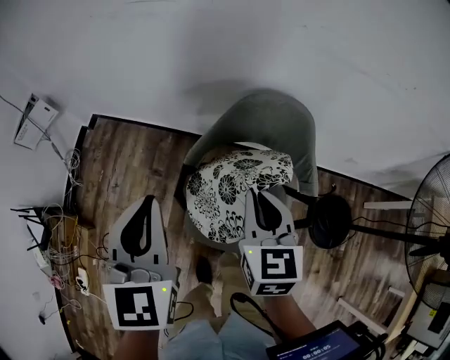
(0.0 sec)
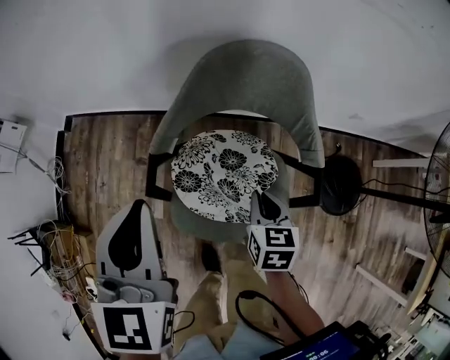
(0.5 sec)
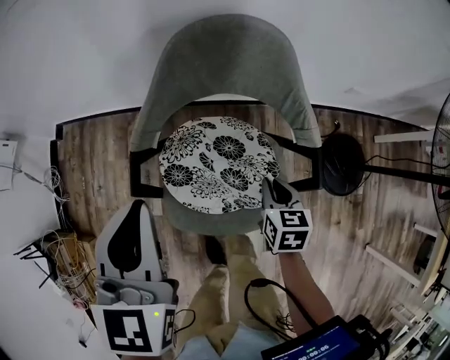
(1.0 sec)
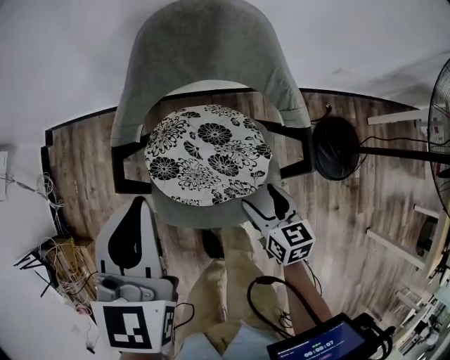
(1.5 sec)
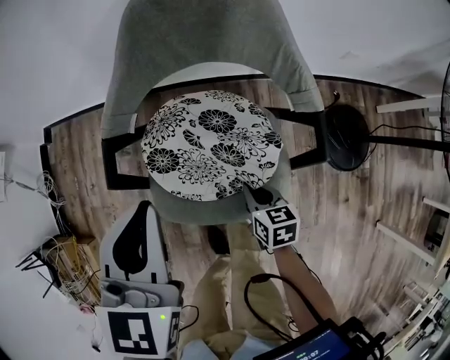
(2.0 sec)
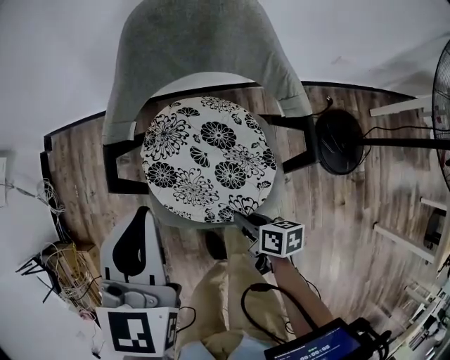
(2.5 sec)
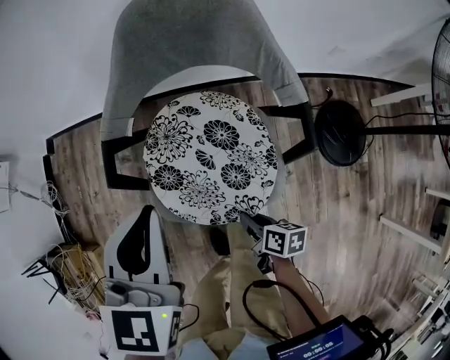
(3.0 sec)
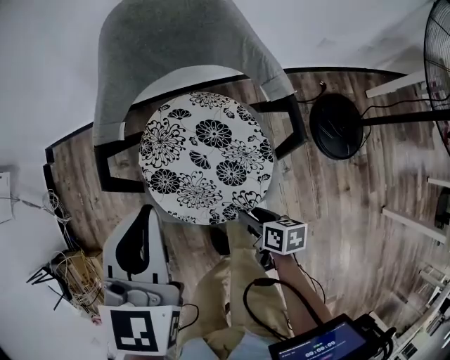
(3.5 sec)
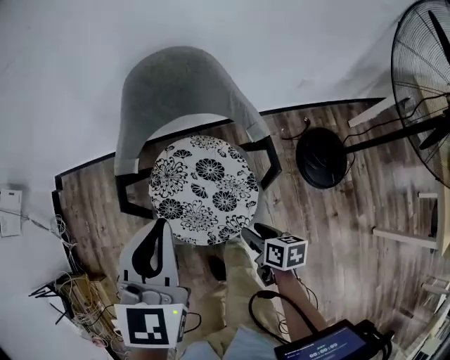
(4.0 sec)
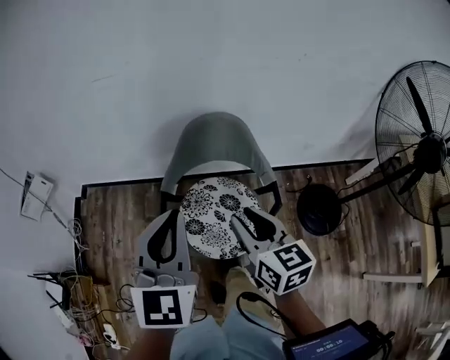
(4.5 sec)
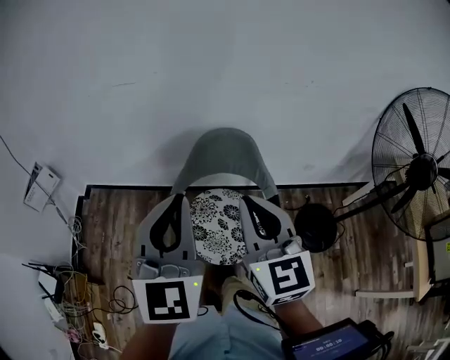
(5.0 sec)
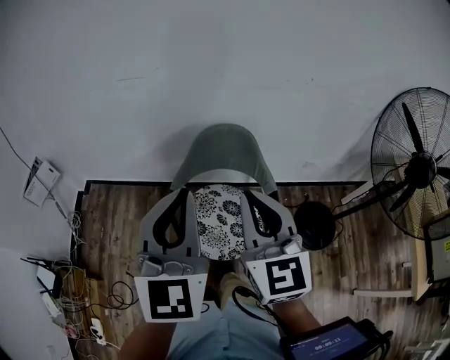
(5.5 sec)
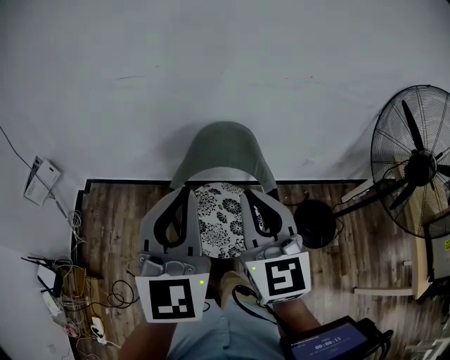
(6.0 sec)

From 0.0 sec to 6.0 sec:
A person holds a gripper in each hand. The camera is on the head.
From 0.0 sec to 2.0 sec: The left gripper is displaced downward and to the right by about 25 cm, and swivels roughly 20 degrees, while the right gripper heads downward, covering approximately 40 cm, swivels roughly 30 degrees, and opens, then closes again.
From 2.0 sec to 4.0 sec: The right gripper goes roughly 10 cm upward and backward, changes its angle by roughly 20 degrees, and opens; the left gripper heads upward, covering roughly 10 cm.
From 4.0 sec to 6.0 sec: The left gripper travels upward by some 25 cm, and changes its angle by some 30 degrees. Meanwhile the right gripper travels upward by about 50 cm, tips its fingers upward by roughly 40 degrees, and closes.

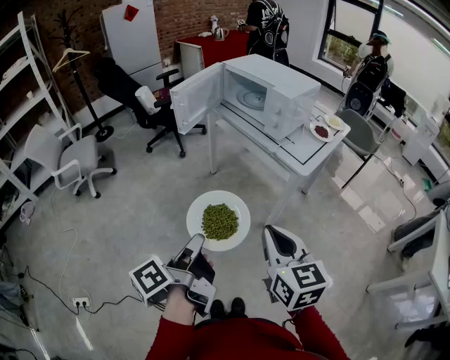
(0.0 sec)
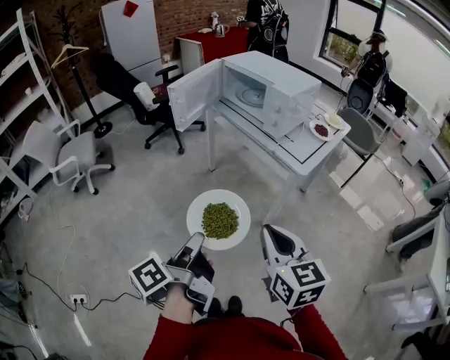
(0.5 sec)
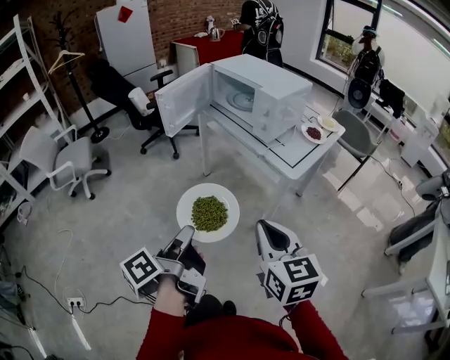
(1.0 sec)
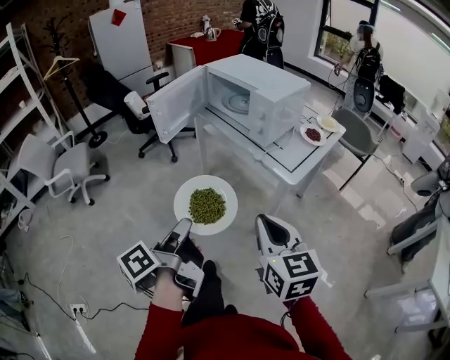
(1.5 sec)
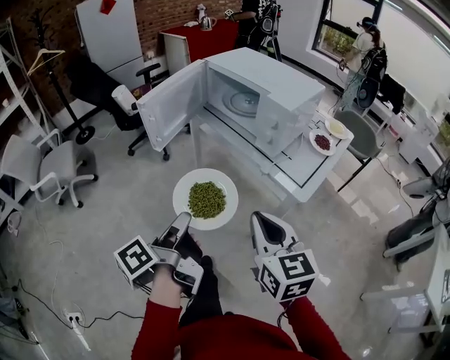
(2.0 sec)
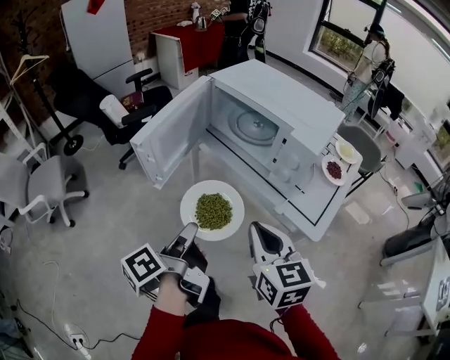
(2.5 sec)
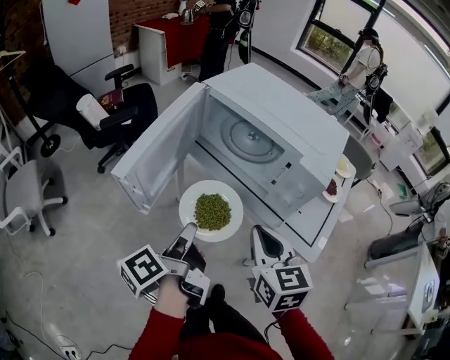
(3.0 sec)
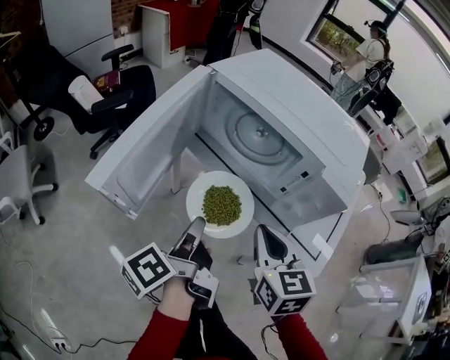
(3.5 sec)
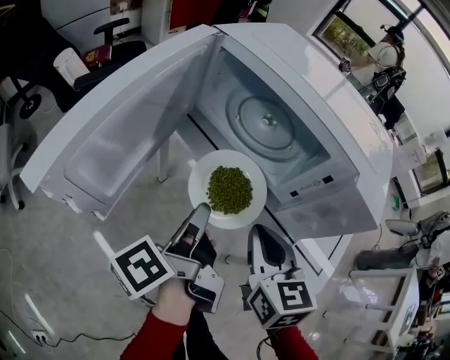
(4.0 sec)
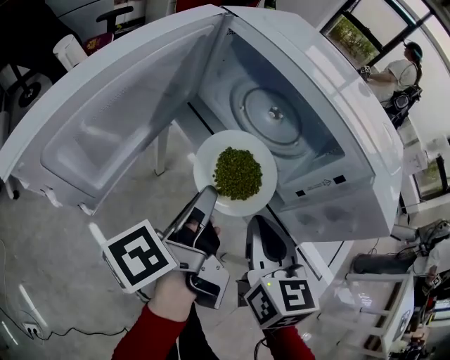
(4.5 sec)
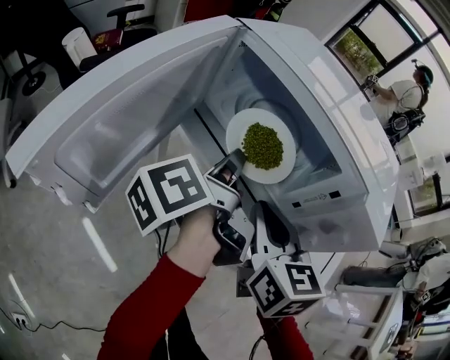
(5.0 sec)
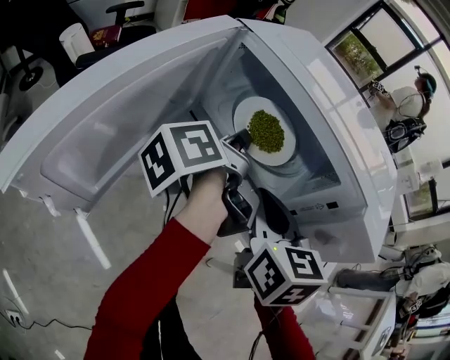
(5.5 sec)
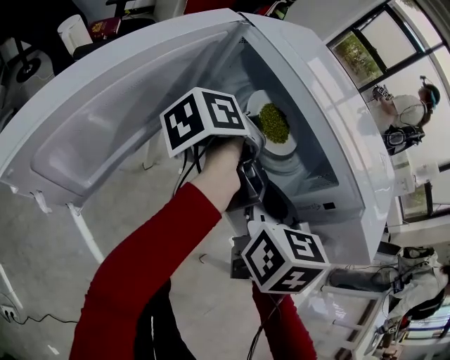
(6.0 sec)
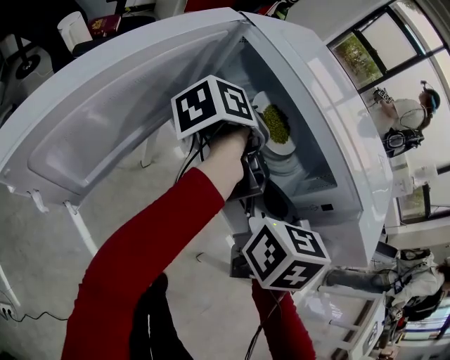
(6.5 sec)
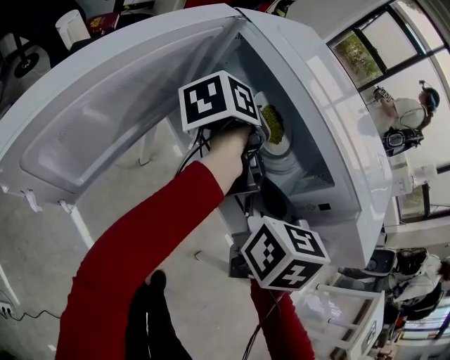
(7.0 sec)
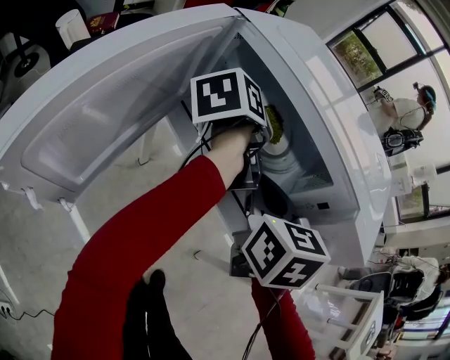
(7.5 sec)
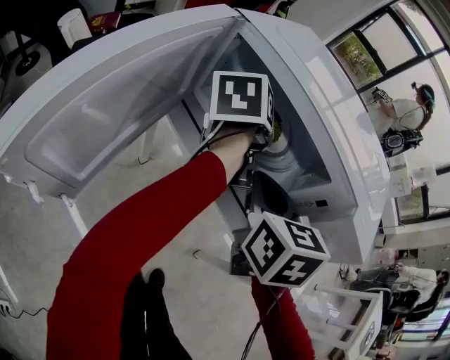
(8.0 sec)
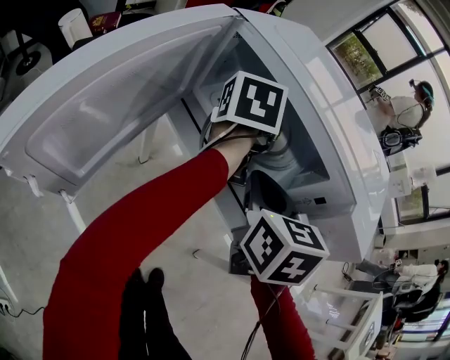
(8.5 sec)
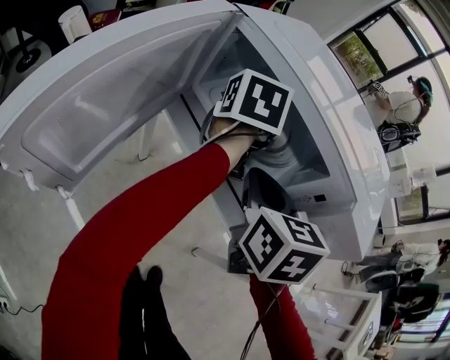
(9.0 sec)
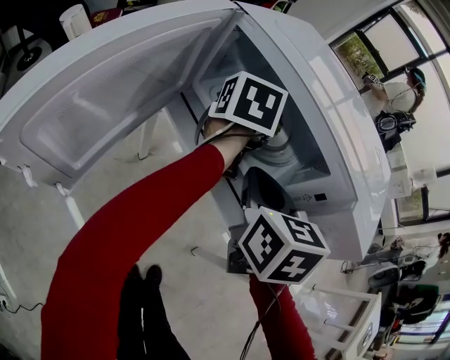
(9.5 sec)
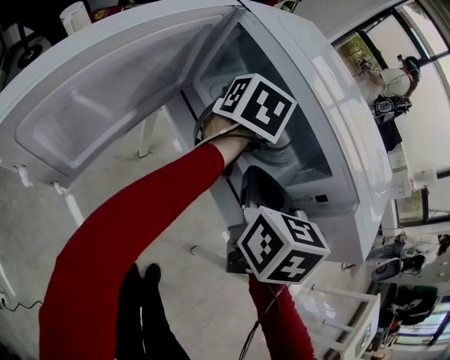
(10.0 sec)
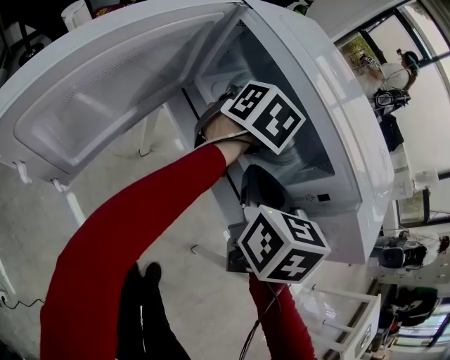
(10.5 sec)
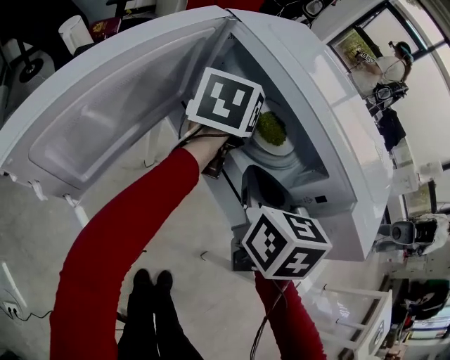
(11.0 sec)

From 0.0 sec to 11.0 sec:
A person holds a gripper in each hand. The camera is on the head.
From 0.0 sec to 2.0 sec: The grippers both shift forward by about 20 cm.
From 2.0 sec to 3.5 sec: The two grippers go approximately 25 cm forward.
From 3.5 sec to 5.5 sec: The left gripper shifts about 20 cm forward, while the right gripper shifts approximately 10 cm forward.
From 5.5 sec to 7.5 sec: The left gripper shifts some 5 cm forward, and changes its angle by about 30 degrees.
From 7.5 sec to 9.0 sec: The left gripper swivels approximately 40 degrees.

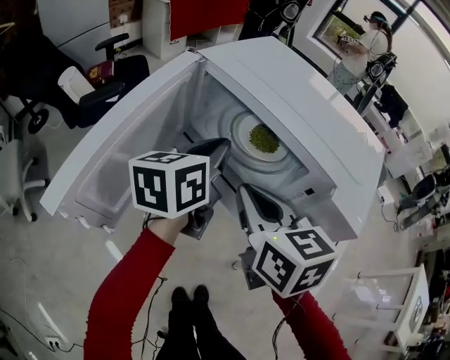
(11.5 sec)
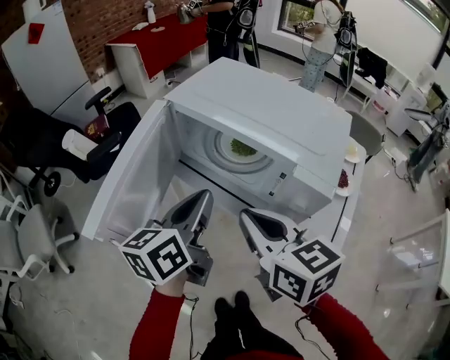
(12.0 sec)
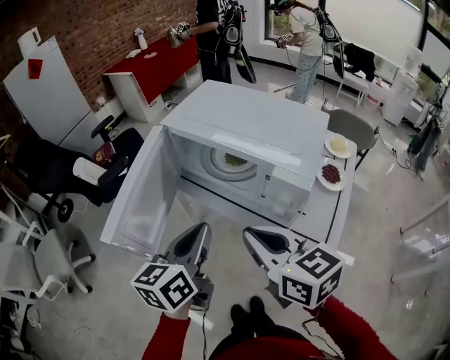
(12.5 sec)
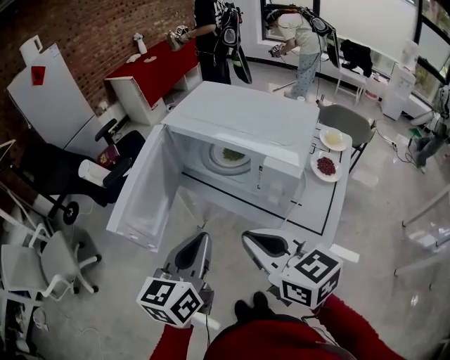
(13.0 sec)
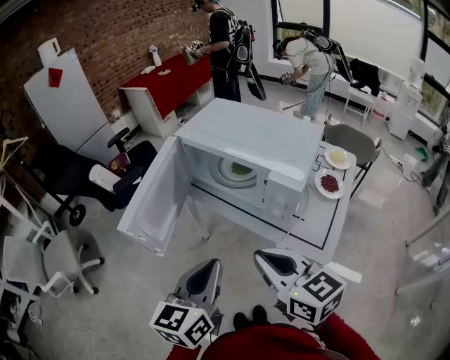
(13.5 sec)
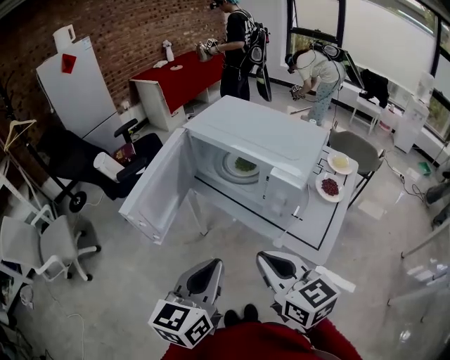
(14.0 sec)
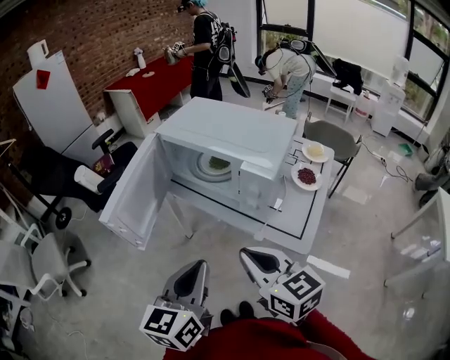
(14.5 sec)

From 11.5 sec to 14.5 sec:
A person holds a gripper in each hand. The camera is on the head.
From 11.5 sec to 13.0 sec: The left gripper goes about 20 cm backward, while the right gripper moves backward and upward, some 15 cm.
From 13.0 sec to 14.5 sec: The left gripper moves backward, some 10 cm. The right gripper travels backward by about 5 cm.

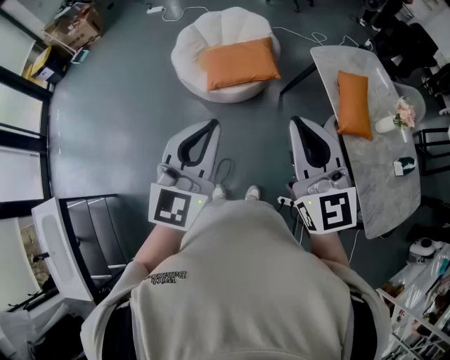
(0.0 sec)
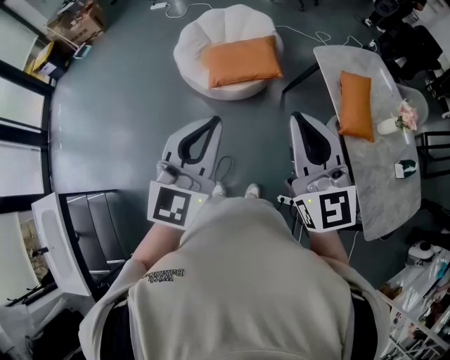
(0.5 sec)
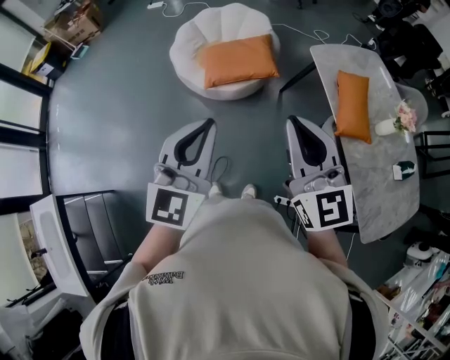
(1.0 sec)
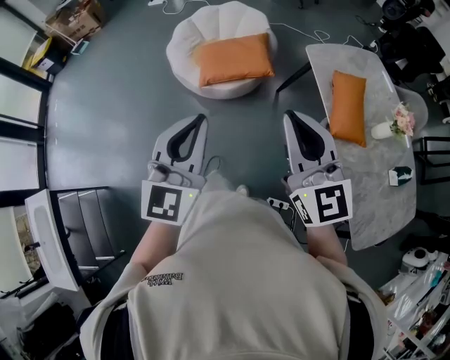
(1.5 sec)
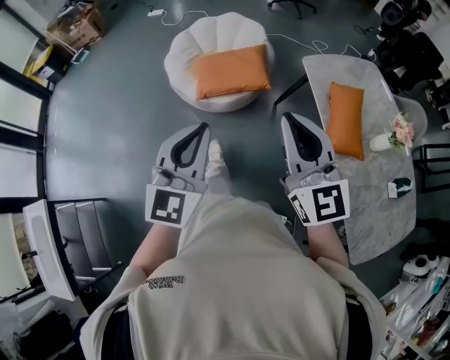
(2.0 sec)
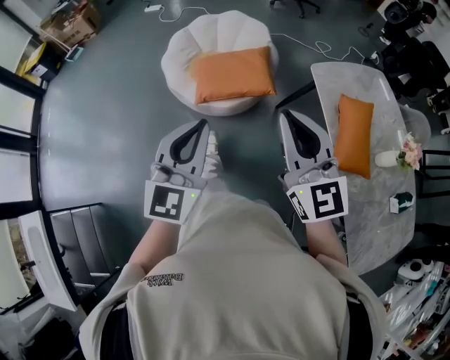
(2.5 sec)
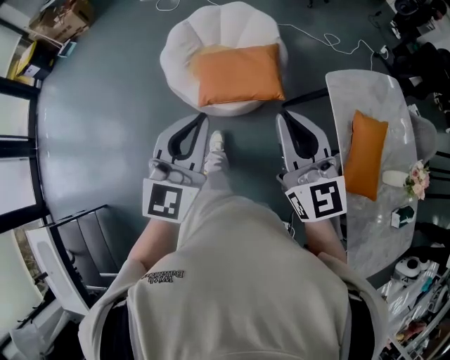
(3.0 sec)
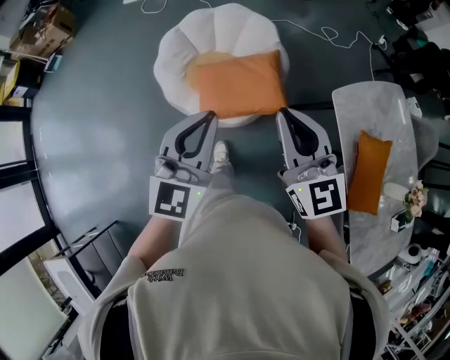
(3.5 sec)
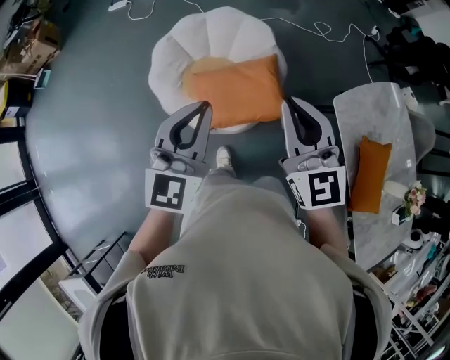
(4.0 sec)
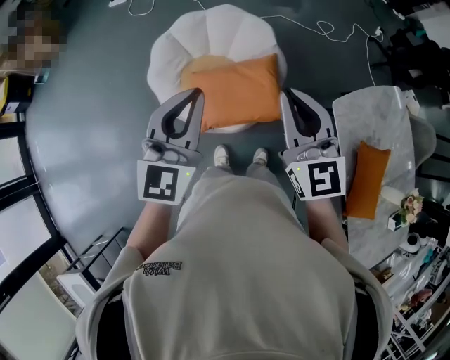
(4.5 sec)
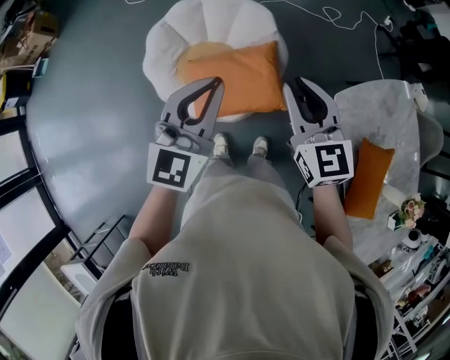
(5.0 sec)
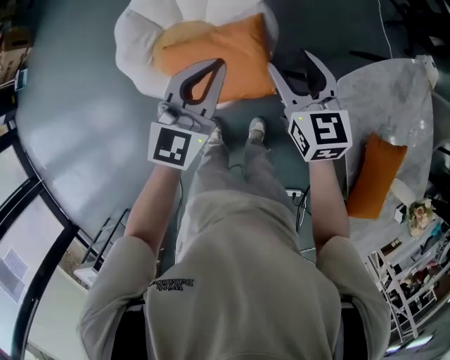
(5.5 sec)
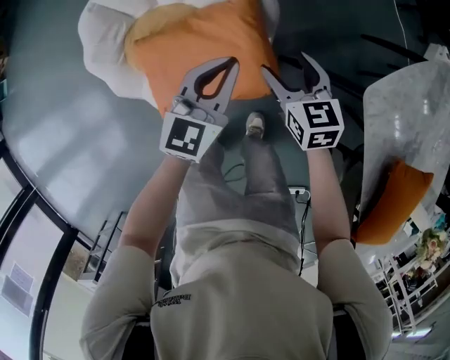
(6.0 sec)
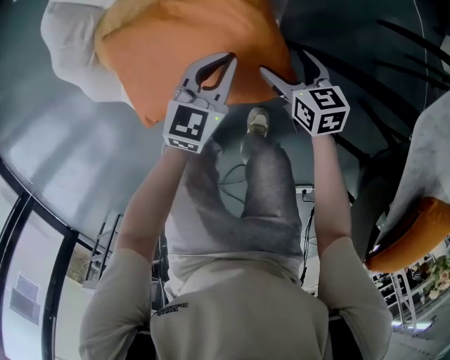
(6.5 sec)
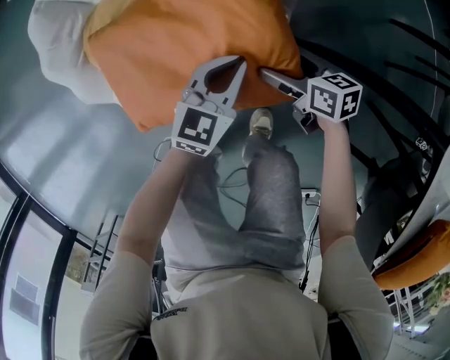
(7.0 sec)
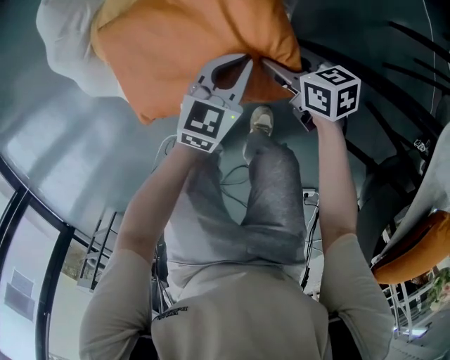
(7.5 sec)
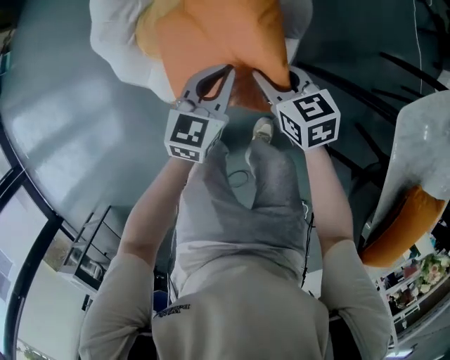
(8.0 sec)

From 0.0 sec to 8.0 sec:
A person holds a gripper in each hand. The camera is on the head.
From 0.0 sec to 2.0 sec: Both grippers travel together to the right and forward, roughly 10 cm.
From 2.0 sec to 4.0 sec: The two grippers travel together, forward, roughly 50 cm.
From 4.0 sec to 6.0 sec: The right gripper travels downward and forward by some 50 cm, angles its fingers downward, by some 30 degrees, and opens, while the left gripper is displaced downward, forward and to the right by roughly 50 cm, and rotates approximately 20 degrees.
From 6.0 sec to 8.0 sec: The right gripper heads to the left, covering about 10 cm, travels downward and back again, roughly 30 cm each way, and closes its fingers; the left gripper is displaced downward and to the left by about 15 cm.
